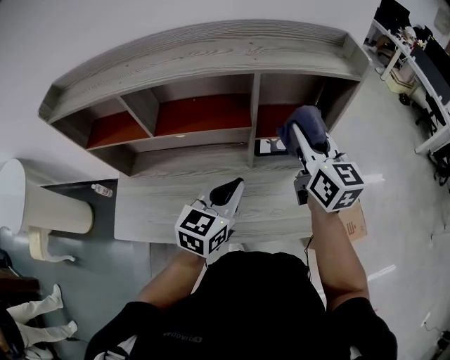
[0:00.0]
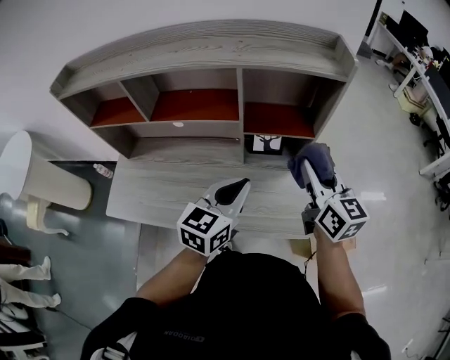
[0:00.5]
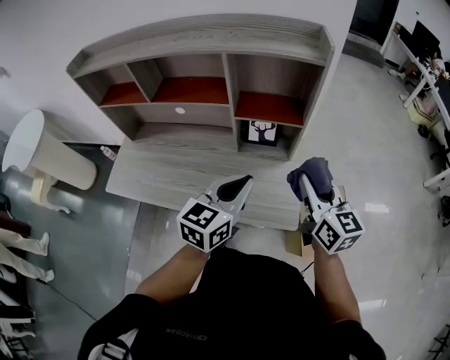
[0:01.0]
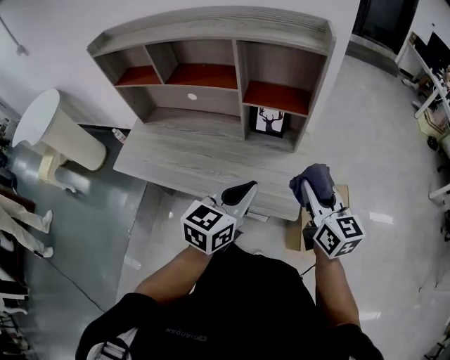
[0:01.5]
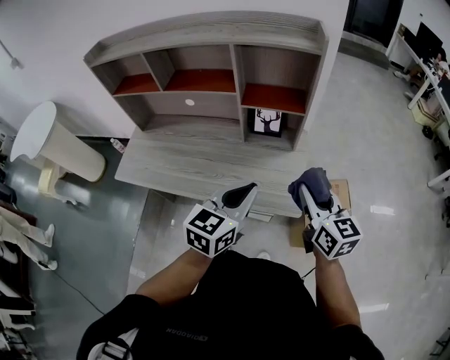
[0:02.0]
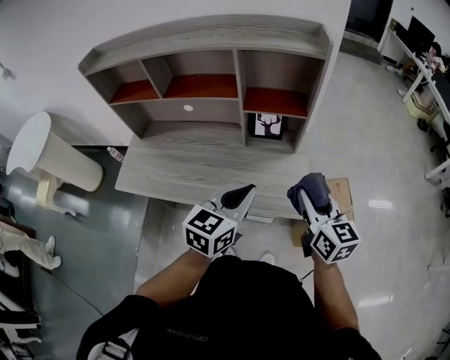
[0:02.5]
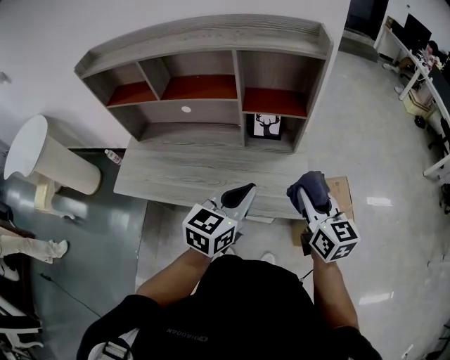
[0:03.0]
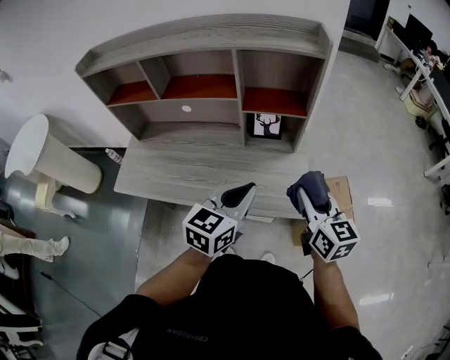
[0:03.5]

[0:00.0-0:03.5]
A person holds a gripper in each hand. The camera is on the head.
0:00.0 to 0:02.0: The left gripper shifts approximately 25 cm backward and to the right. The right gripper heads backward, to the right and downward, covering about 30 cm.
0:02.0 to 0:03.5: The grippers make only small movements.

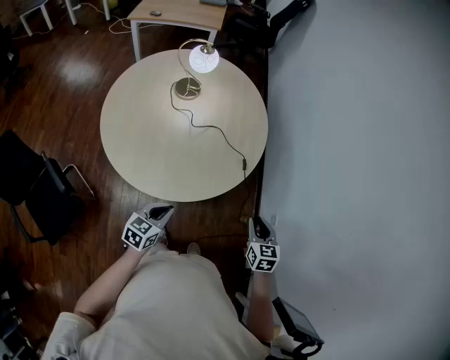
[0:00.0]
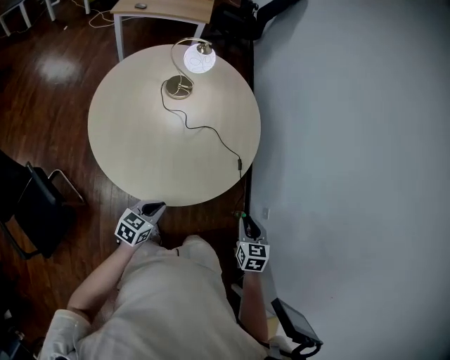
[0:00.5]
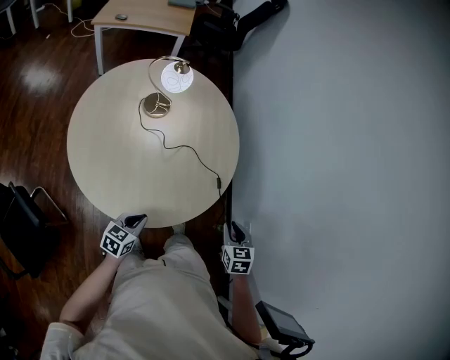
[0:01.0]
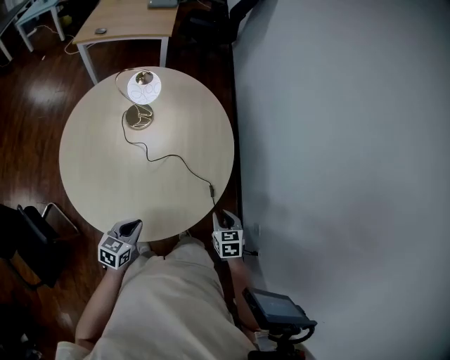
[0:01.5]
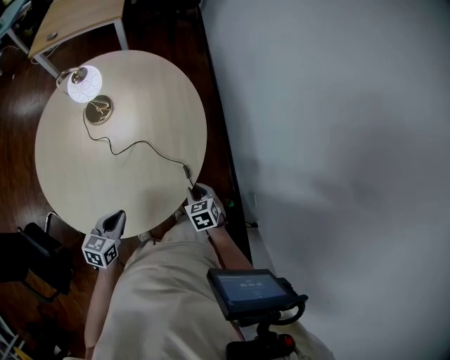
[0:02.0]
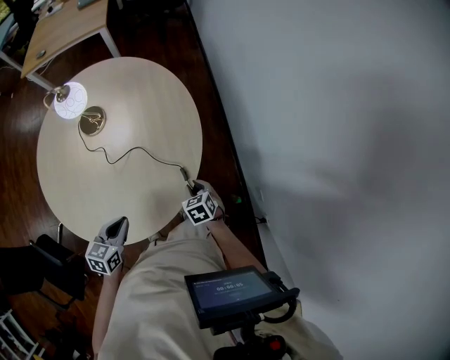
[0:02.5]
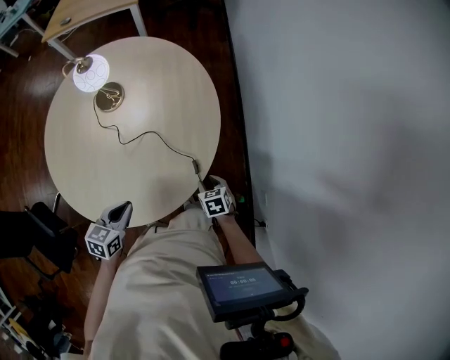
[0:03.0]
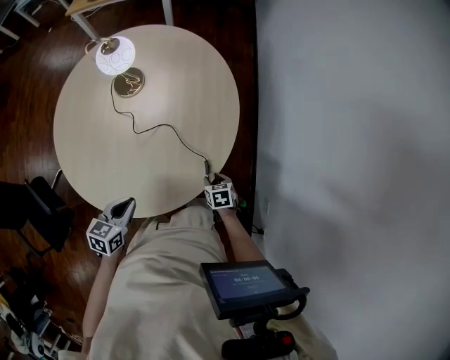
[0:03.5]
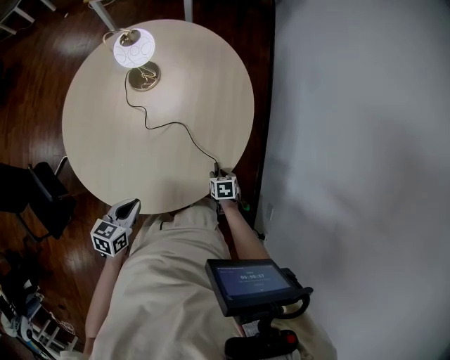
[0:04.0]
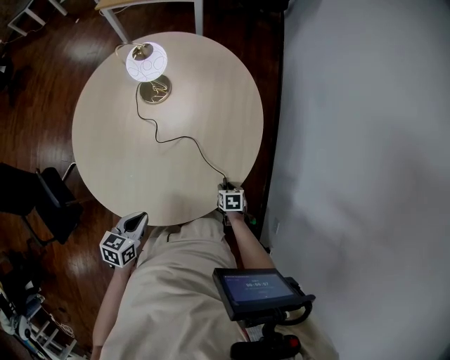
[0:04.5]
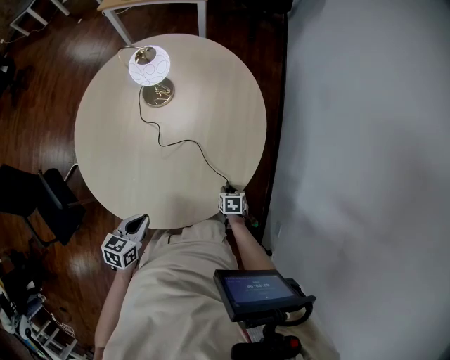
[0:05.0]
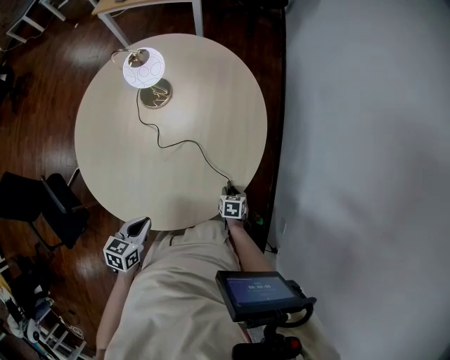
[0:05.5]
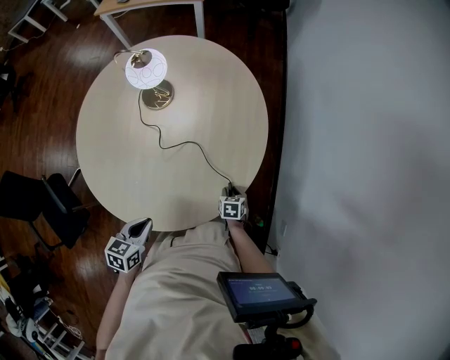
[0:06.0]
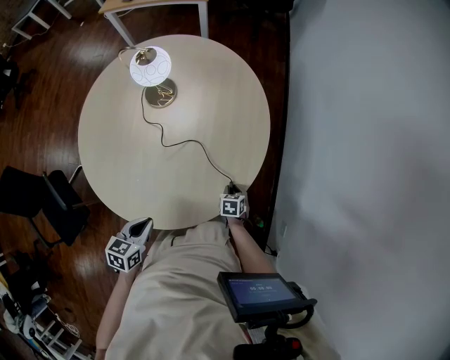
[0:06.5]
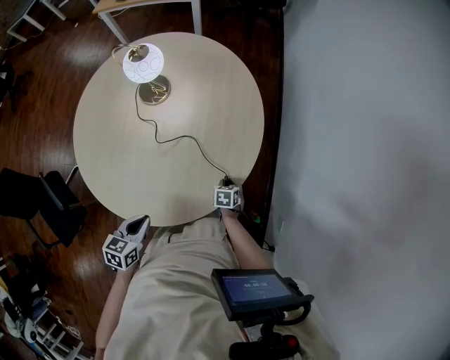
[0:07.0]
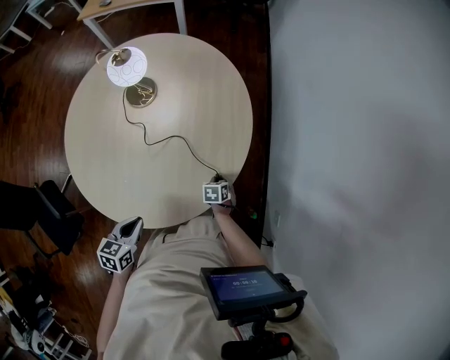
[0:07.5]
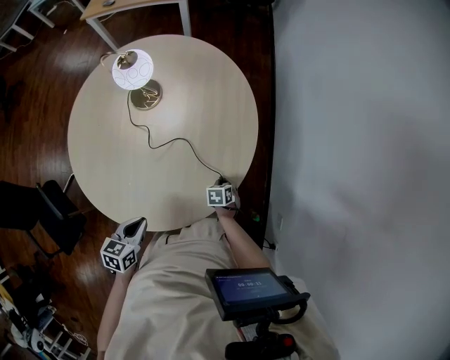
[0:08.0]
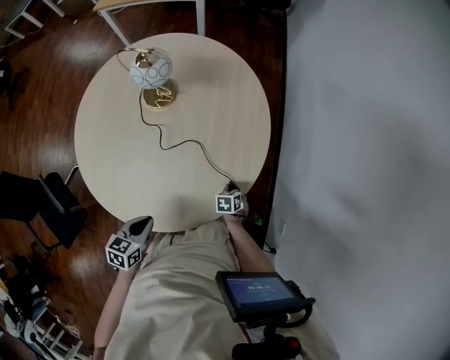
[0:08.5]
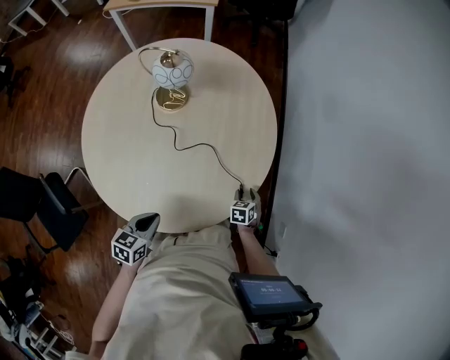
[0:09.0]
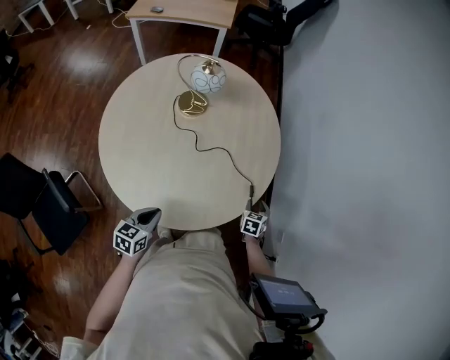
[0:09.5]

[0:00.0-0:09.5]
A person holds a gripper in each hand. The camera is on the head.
0:00.0 to 0:02.0: The right gripper heads forward and downward, covering about 25 cm. Meanwhile the left gripper moves forward, about 20 cm.
0:02.0 to 0:04.0: The right gripper travels downward by about 15 cm.
0:04.0 to 0:07.5: There are only small adjustments of the grippers.
0:07.5 to 0:09.5: The left gripper heads to the left and backward, covering about 15 cm, while the right gripper moves upward and backward, roughly 15 cm, and swivels about 20 degrees.

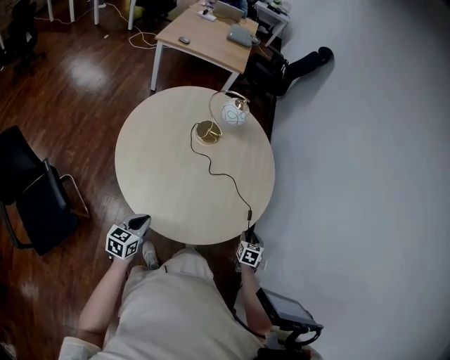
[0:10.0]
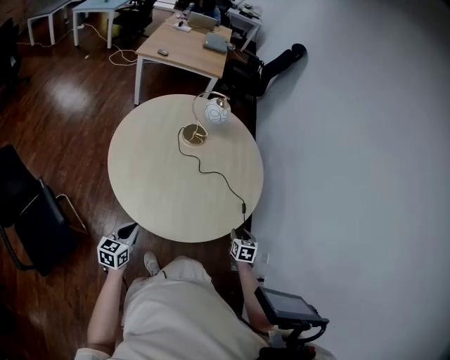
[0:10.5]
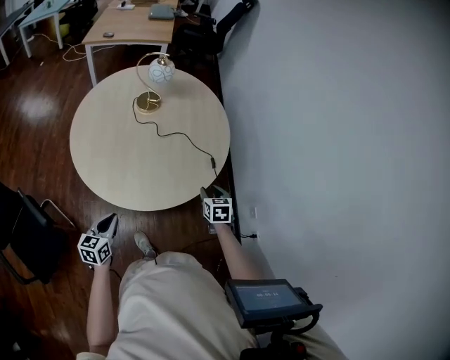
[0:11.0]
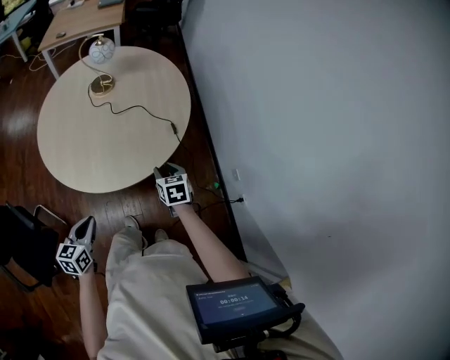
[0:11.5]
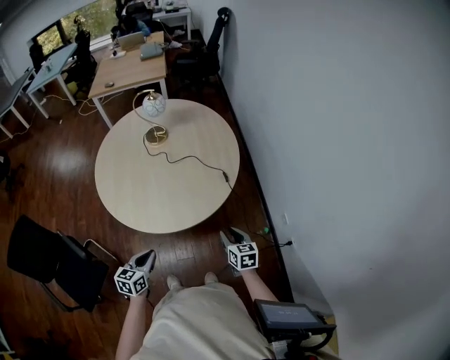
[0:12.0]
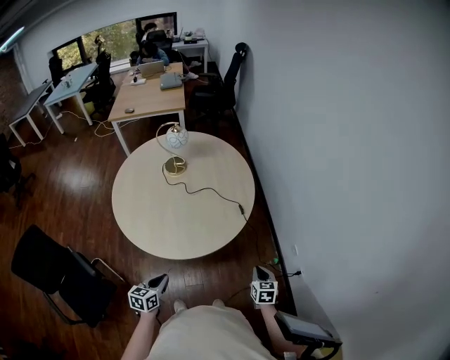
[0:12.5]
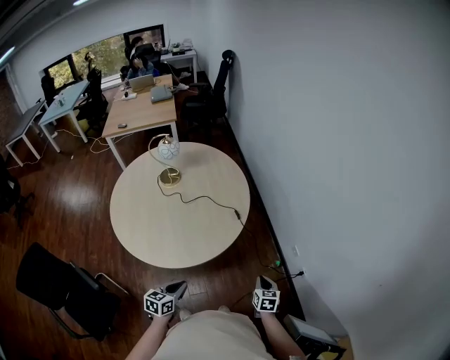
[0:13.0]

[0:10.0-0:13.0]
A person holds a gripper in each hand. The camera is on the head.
0:10.0 to 0:11.5: The left gripper goes some 20 cm to the right and backward. Meanwhile the right gripper goes about 10 cm backward and upward, and rotates approximately 20 degrees.
0:11.5 to 0:13.0: The left gripper is displaced to the right by roughly 5 cm; the right gripper heads to the right and backward, covering approximately 20 cm, changes its angle by approximately 20 degrees, and closes.

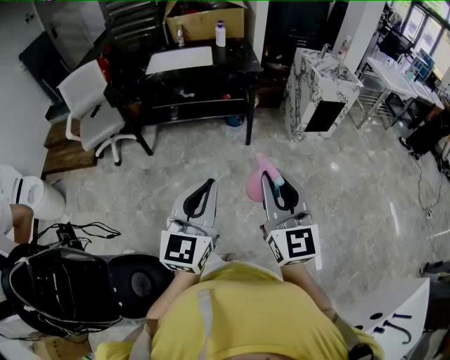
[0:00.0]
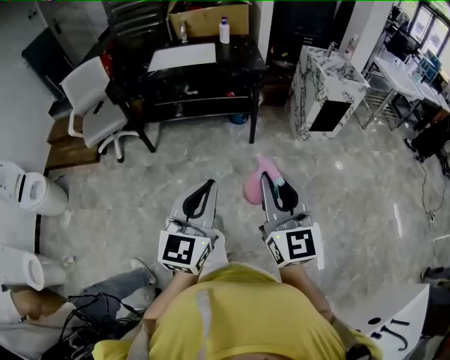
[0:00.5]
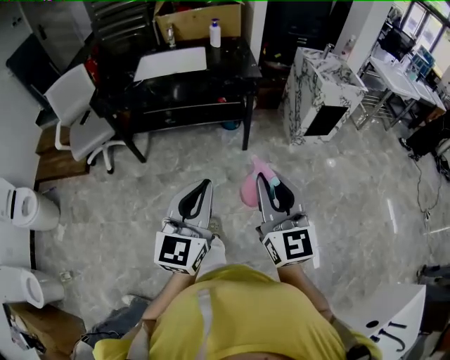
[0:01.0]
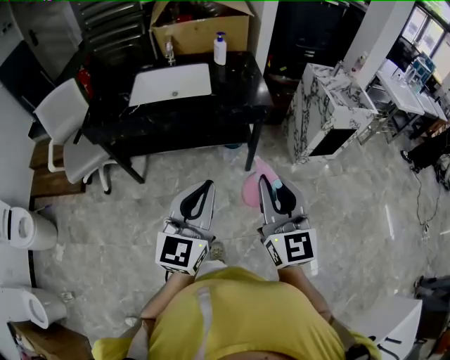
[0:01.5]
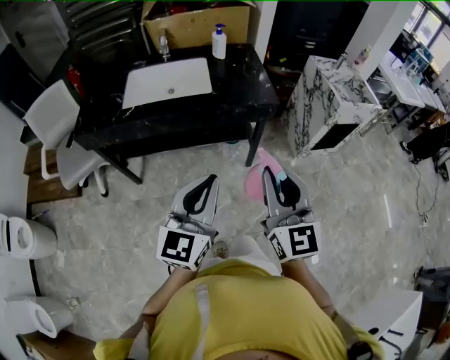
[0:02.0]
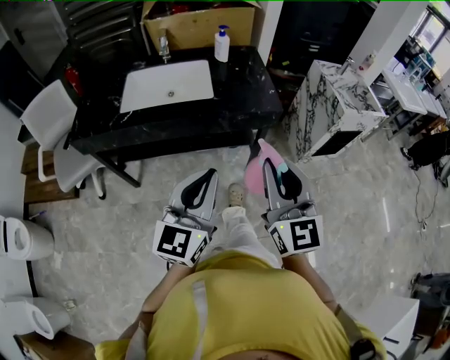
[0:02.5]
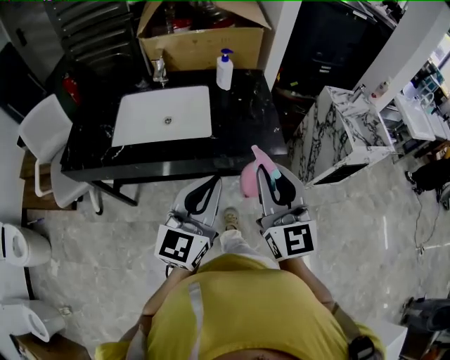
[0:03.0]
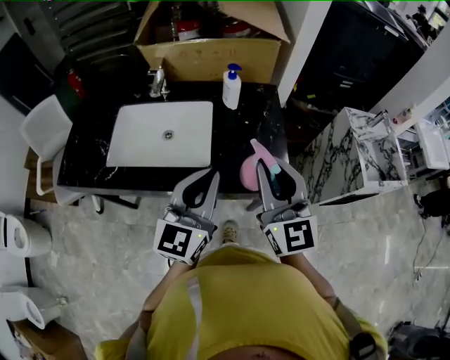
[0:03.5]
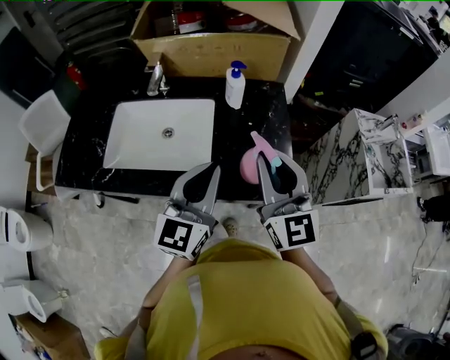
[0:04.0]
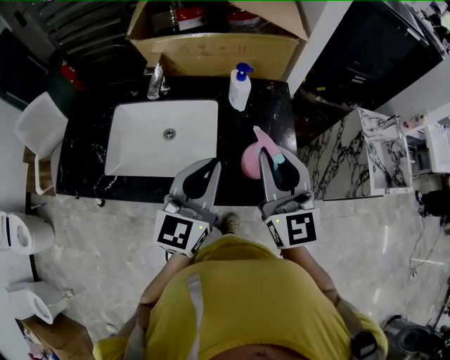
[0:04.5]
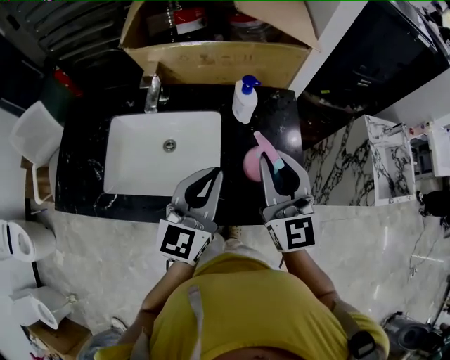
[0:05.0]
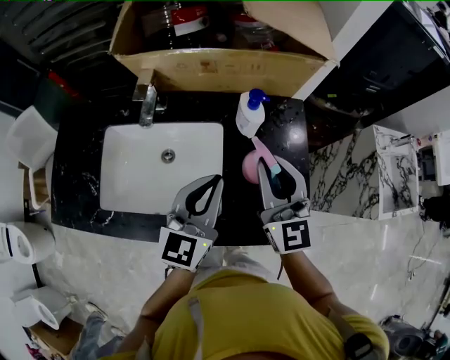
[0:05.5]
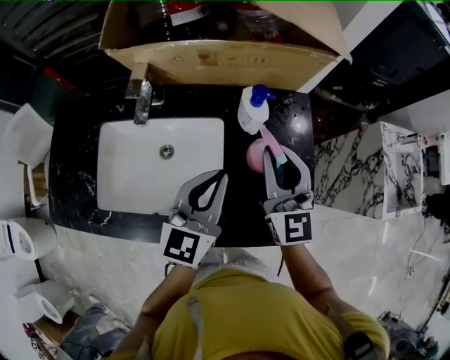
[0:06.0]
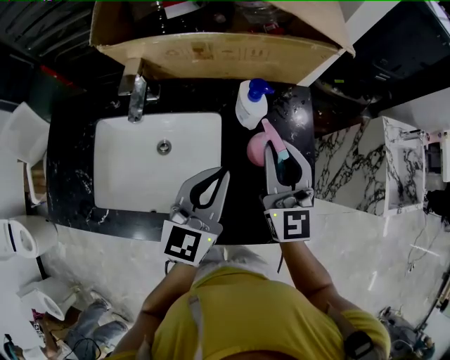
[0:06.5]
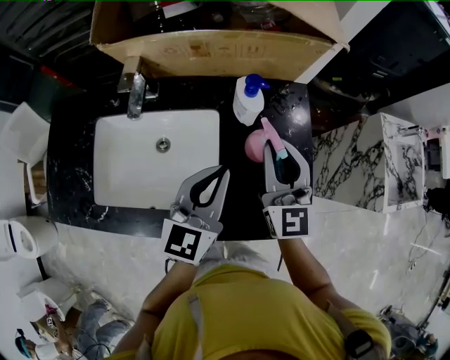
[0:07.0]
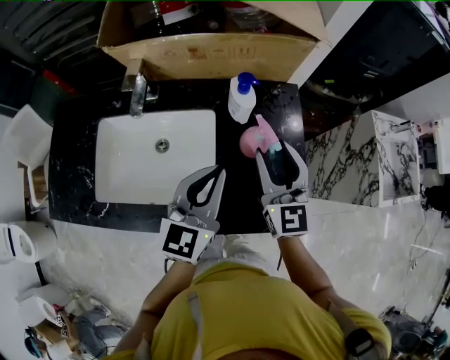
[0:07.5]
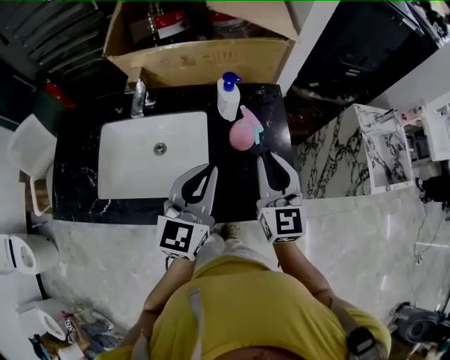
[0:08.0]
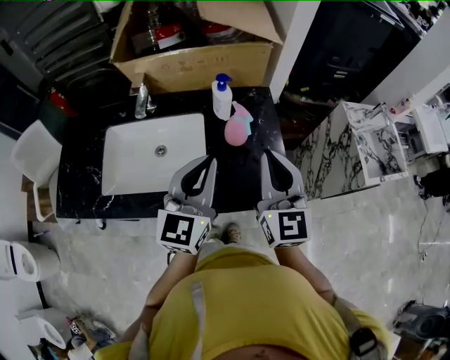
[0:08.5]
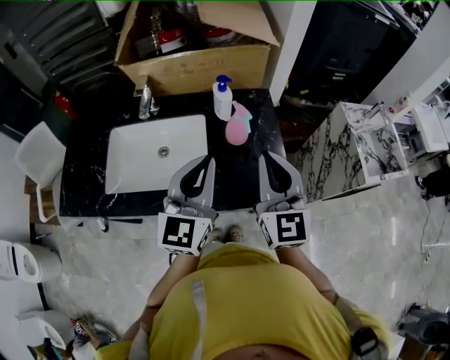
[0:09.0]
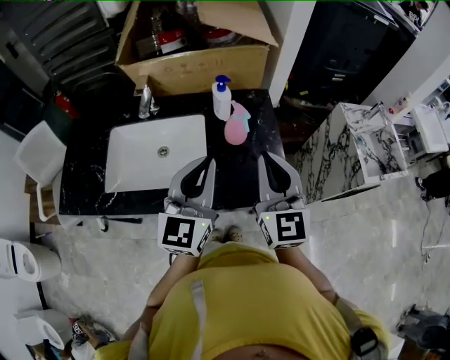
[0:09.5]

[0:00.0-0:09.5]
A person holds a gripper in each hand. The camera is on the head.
0:00.0 to 0:02.0: Both grippers travel together forward, roughly 40 cm.
0:02.0 to 0:04.0: The pair of grippers is taken forward, about 50 cm.
0:04.0 to 0:05.5: The left gripper shifts some 15 cm forward; the right gripper is displaced forward and downward by some 20 cm.
0:05.5 to 0:07.5: The right gripper changes place by about 5 cm, and opens.
0:07.5 to 0:09.5: Both grippers travel together backward and upward, roughly 15 cm. The right gripper closes its fingers.

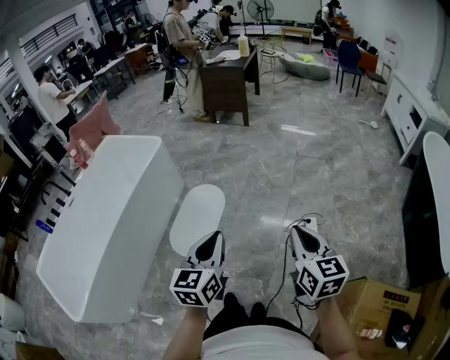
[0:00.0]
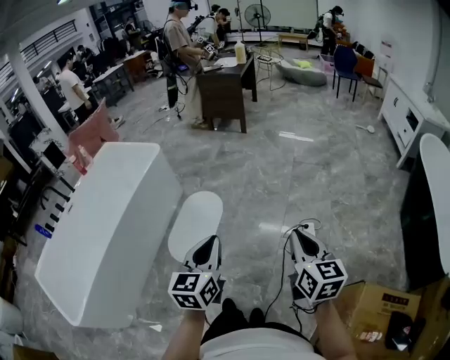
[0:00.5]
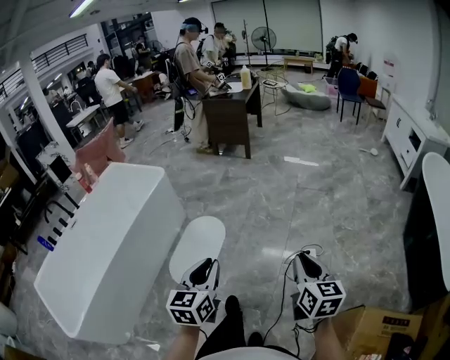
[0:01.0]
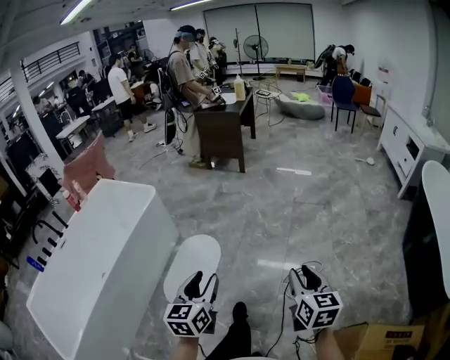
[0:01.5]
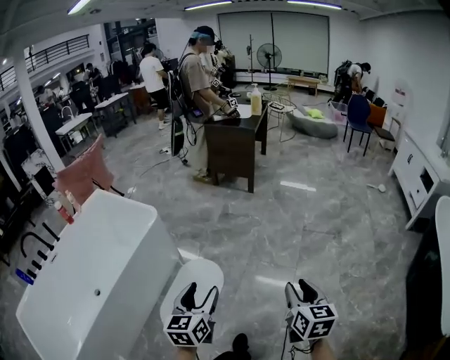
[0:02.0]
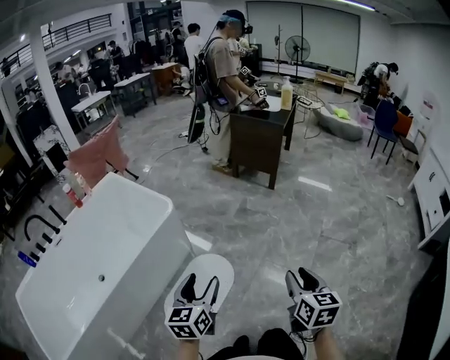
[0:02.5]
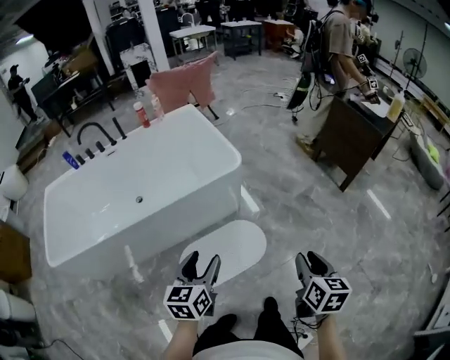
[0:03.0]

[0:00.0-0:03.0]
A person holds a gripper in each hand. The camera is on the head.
0:00.0 to 0:01.5: The grippers both shift forward by some 10 cm. The left gripper opens up, while the right gripper opens up.
0:01.5 to 0:03.0: The right gripper moves about 50 cm, and swivels about 40 degrees; the left gripper moves some 35 cm, and changes its angle by some 40 degrees.
